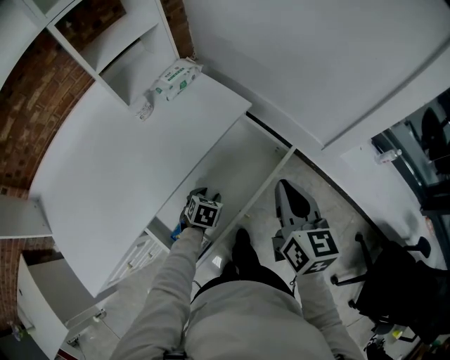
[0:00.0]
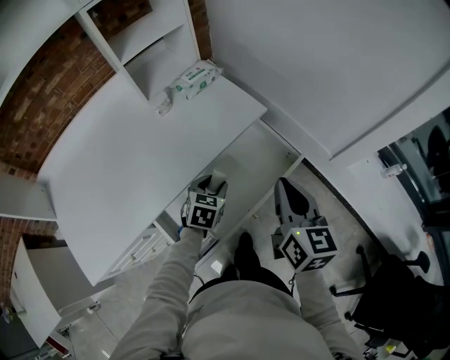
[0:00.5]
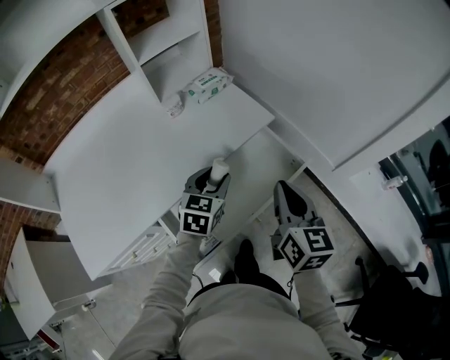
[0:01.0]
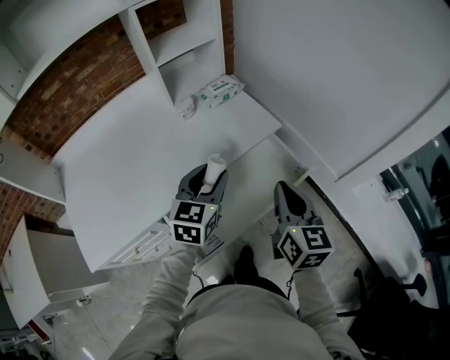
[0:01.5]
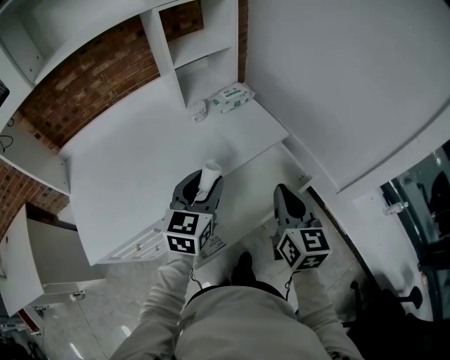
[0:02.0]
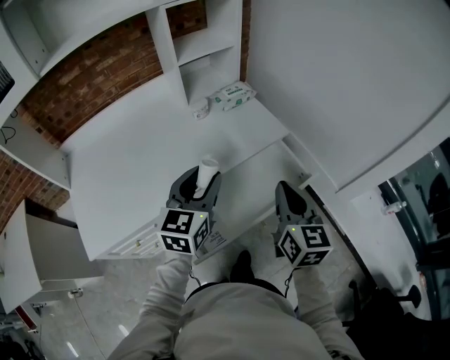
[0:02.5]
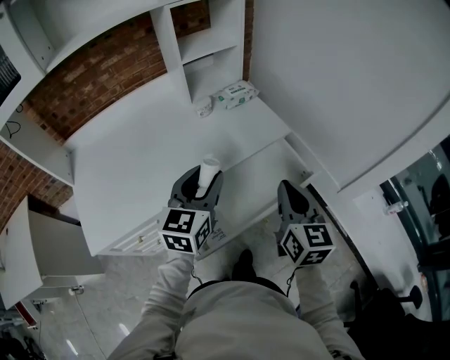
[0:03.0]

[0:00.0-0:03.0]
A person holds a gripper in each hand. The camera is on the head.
0:00.0 to 0:01.5: The left gripper travels upward by roughly 30 cm, and tilts its fingers some 40 degrees upward. Meanwhile the right gripper moves to the left, approximately 5 cm.
0:01.5 to 0:03.0: The left gripper shifts approximately 10 cm backward, upward and to the left.

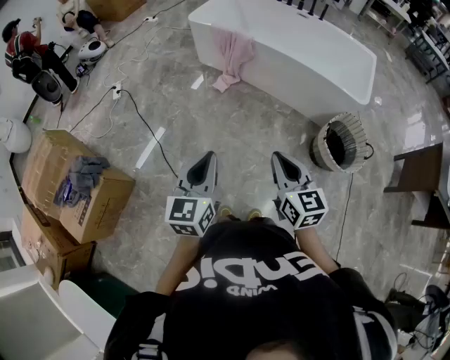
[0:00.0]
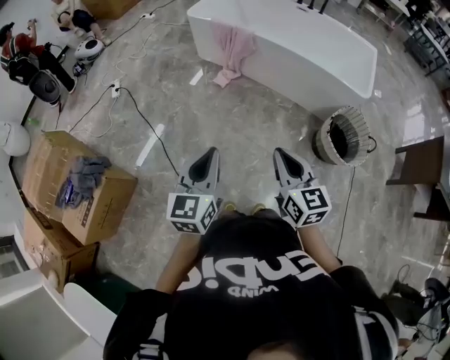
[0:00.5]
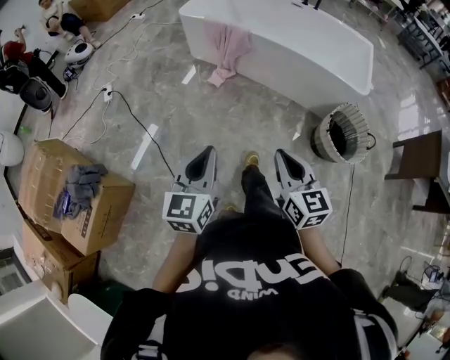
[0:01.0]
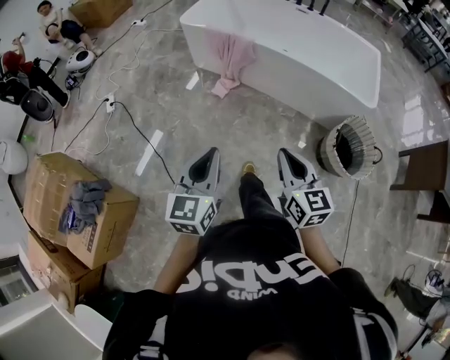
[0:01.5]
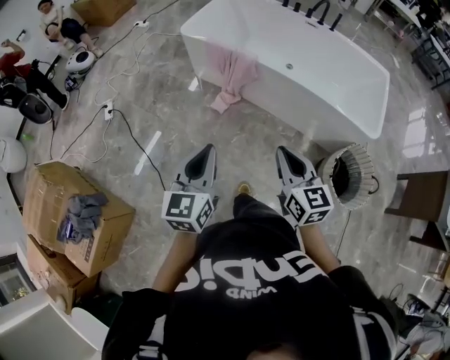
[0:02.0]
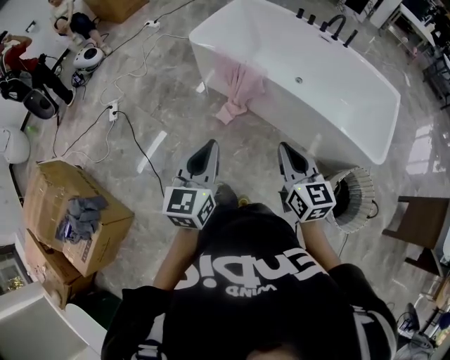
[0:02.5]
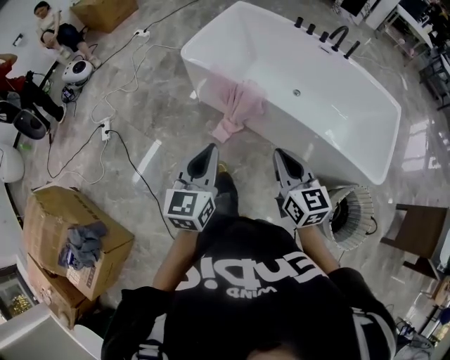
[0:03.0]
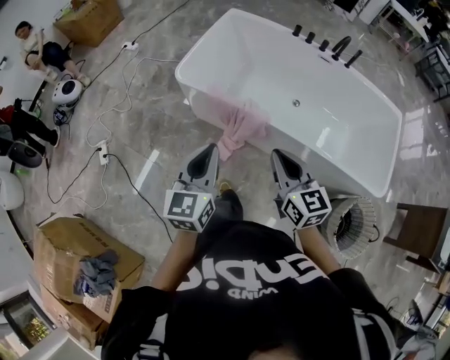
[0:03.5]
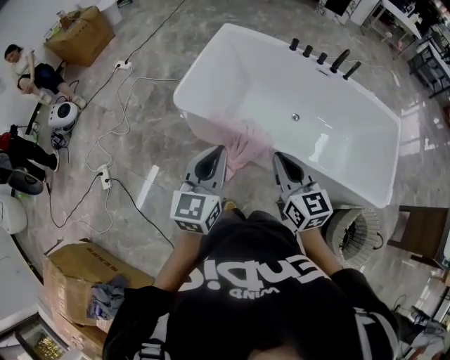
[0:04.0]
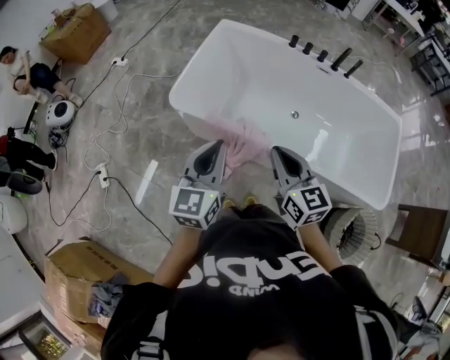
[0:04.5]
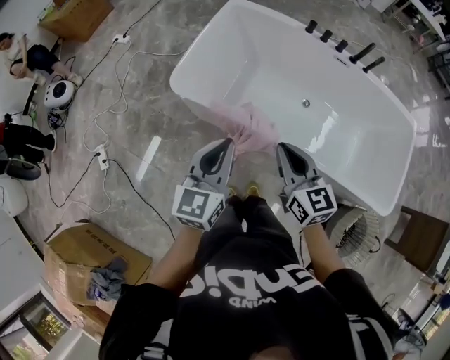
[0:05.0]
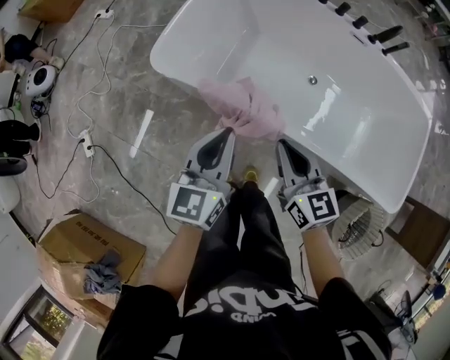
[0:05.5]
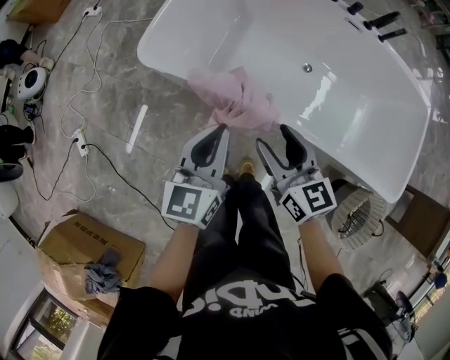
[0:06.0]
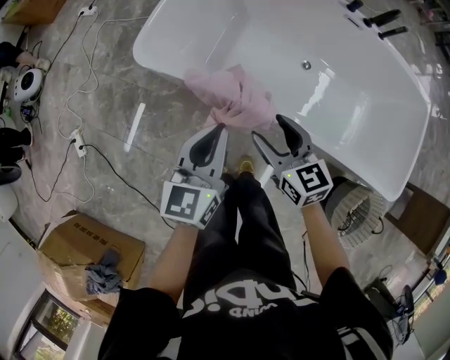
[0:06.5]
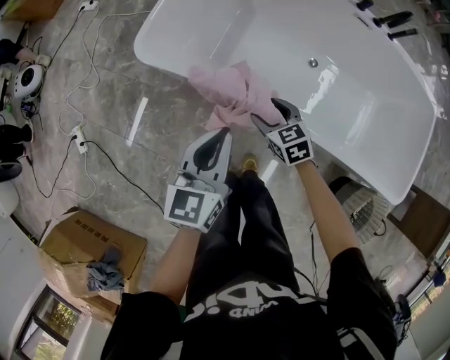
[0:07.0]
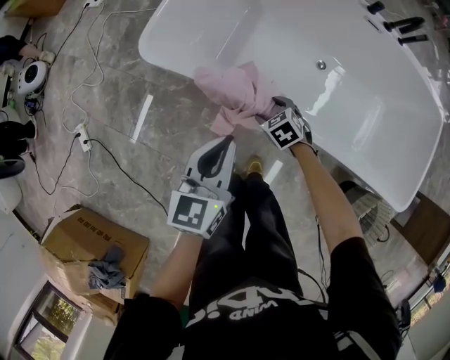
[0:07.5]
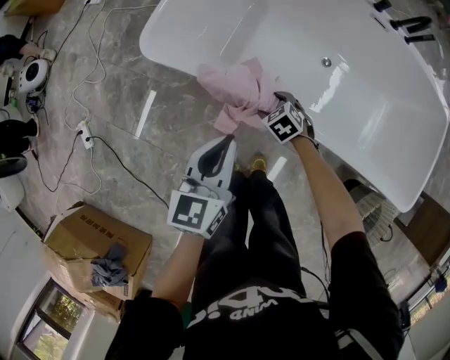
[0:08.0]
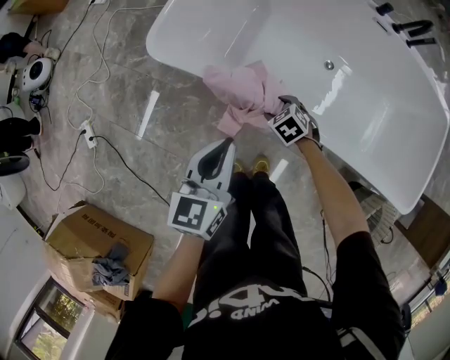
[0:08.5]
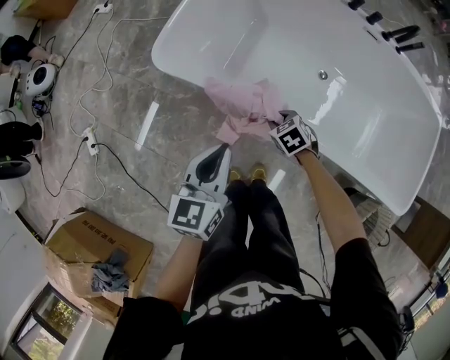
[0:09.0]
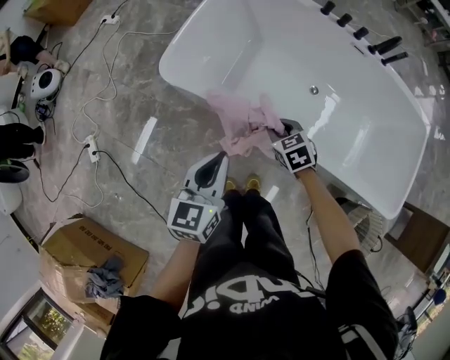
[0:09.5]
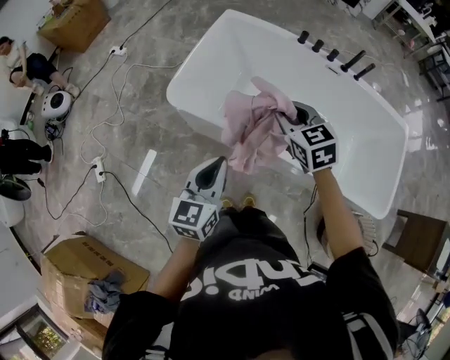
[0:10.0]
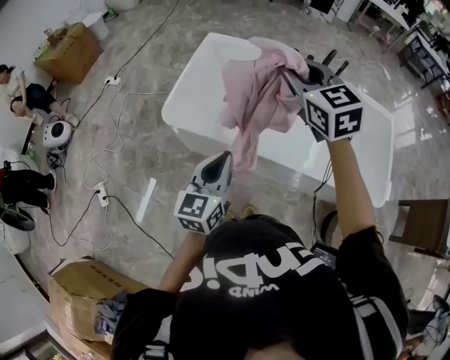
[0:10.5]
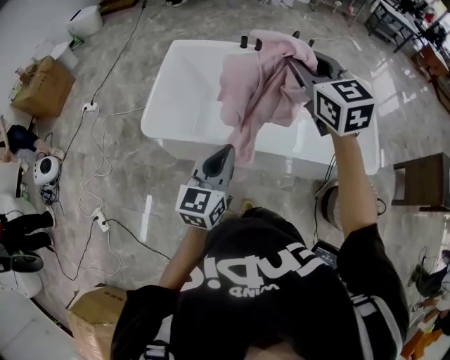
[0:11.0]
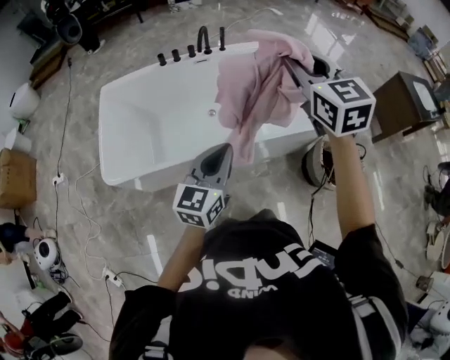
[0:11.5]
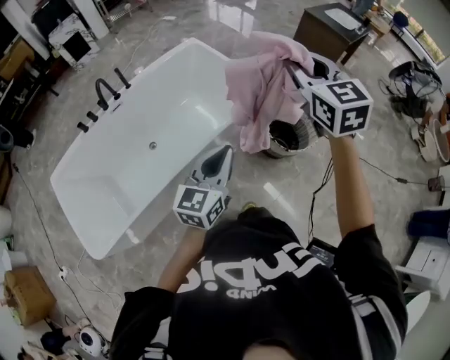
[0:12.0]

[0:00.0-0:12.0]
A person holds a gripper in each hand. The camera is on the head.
0:00.0 to 0:02.0: The grippers both shift forward by roughly 30 cm.
0:02.0 to 0:04.0: Both grippers are carried forward, some 50 cm.
0:04.0 to 0:06.0: The two grippers go about 20 cm downward and forward. The right gripper opens.
0:06.0 to 0:08.0: The left gripper goes some 5 cm downward; the right gripper travels downward by some 30 cm, and angles its fingers downward, by roughly 50 degrees.
0:08.0 to 0:10.0: The right gripper travels upward by roughly 40 cm, tilts its fingers approximately 30 degrees upward, and closes up; the left gripper moves upward, about 15 cm.
0:10.0 to 0:12.0: The two grippers travel together, some 60 cm. The left gripper swivels about 70 degrees; the right gripper turns by about 70 degrees.

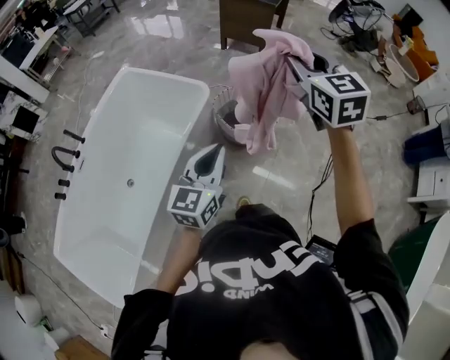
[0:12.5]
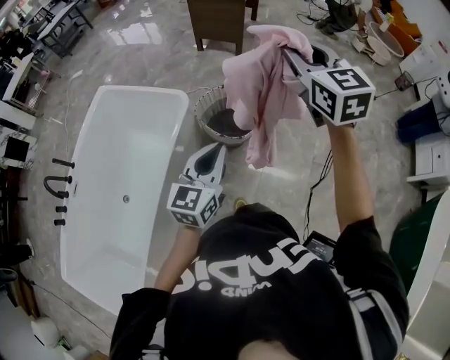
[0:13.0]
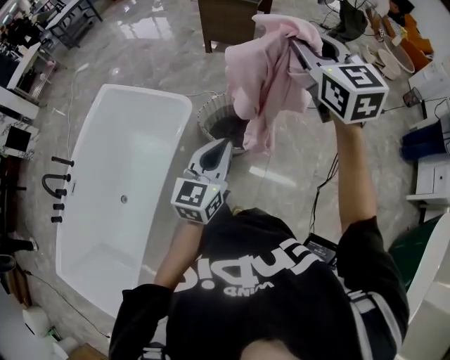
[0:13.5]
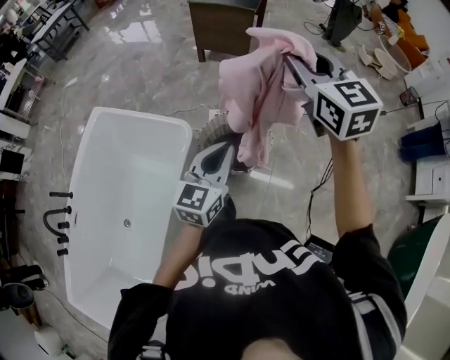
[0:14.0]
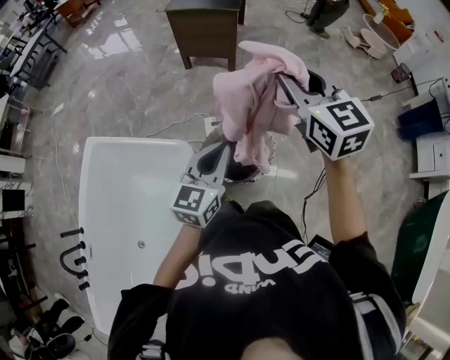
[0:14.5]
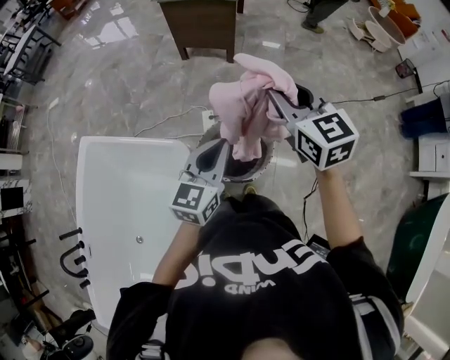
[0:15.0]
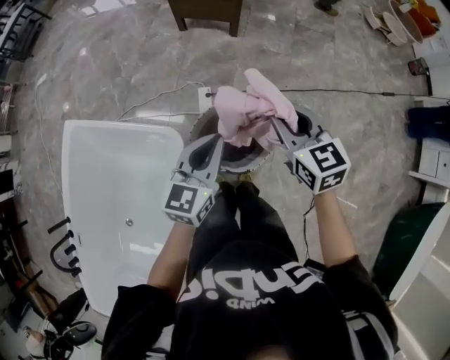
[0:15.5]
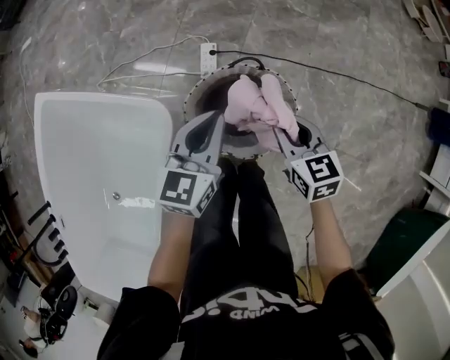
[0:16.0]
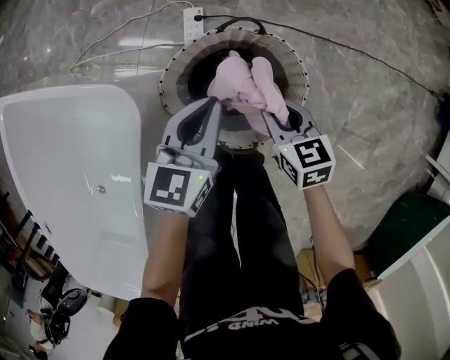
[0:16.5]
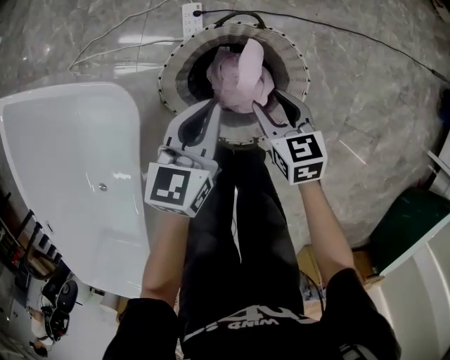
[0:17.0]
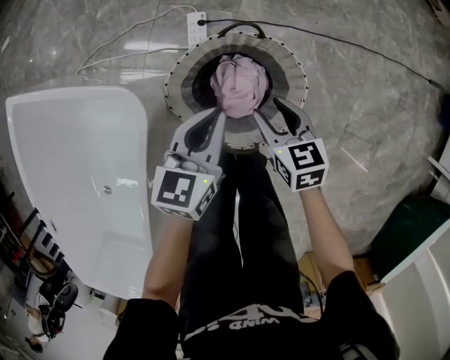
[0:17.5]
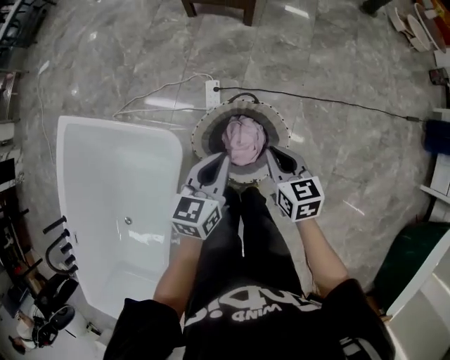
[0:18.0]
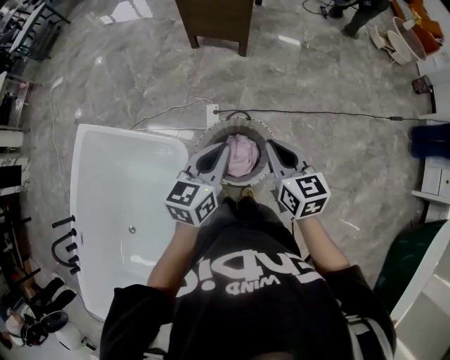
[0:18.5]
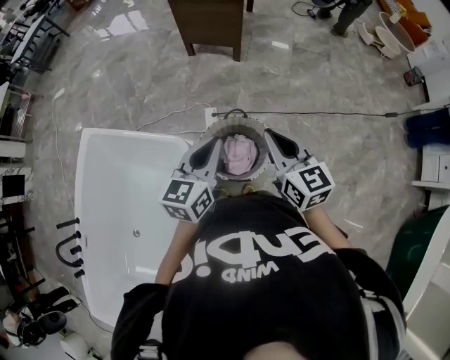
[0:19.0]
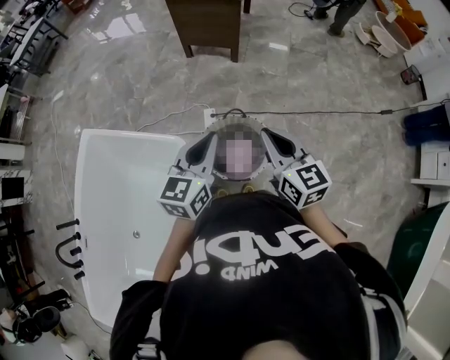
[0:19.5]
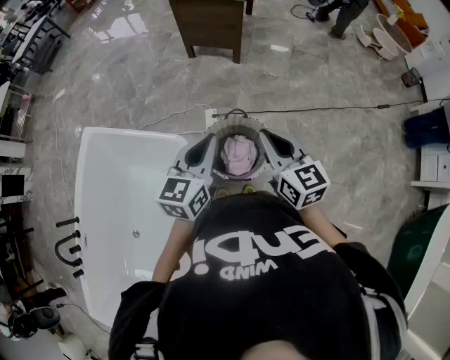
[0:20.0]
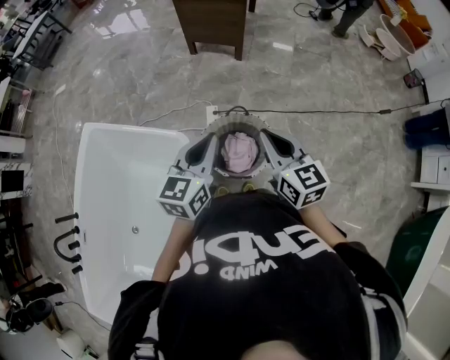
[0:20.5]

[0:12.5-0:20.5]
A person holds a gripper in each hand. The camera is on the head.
0:12.5 to 0:14.5: Both grippers travel together forward, roughly 35 cm.
0:14.5 to 0:16.5: The left gripper travels downward by roughly 40 cm, and changes its angle by roughly 20 degrees, while the right gripper travels downward by some 60 cm, and points its fingers about 30 degrees further downward.
0:16.5 to 0:18.5: Both grippers move upward, roughly 35 cm. The right gripper rotates about 20 degrees, and opens and closes again.
0:18.5 to 0:20.5: Both grippers travel together backward and upward, approximately 10 cm.

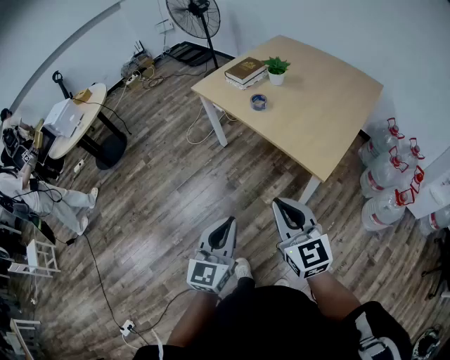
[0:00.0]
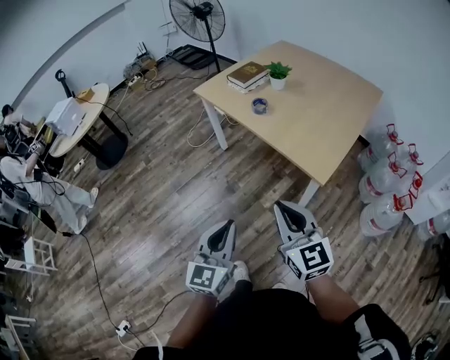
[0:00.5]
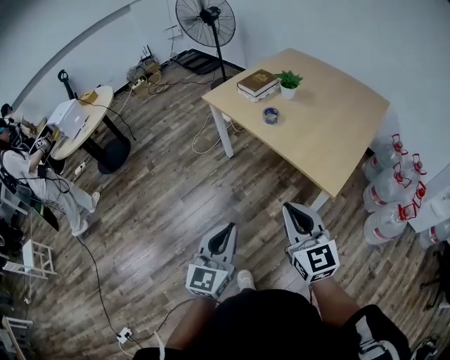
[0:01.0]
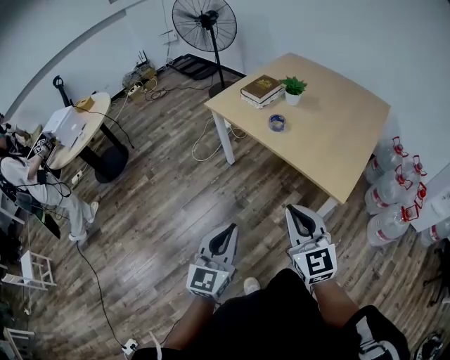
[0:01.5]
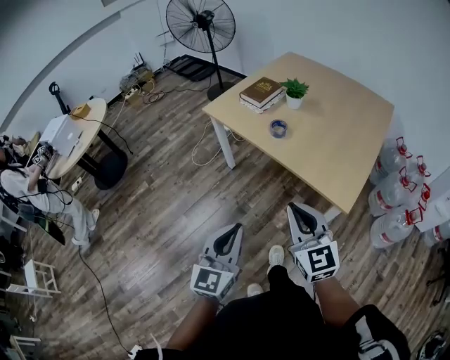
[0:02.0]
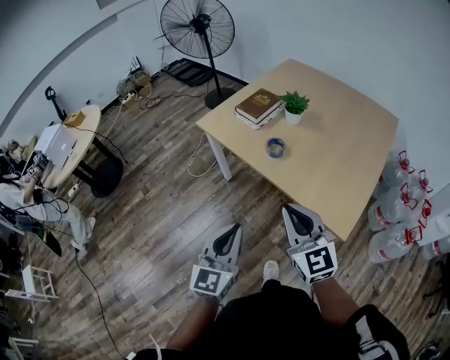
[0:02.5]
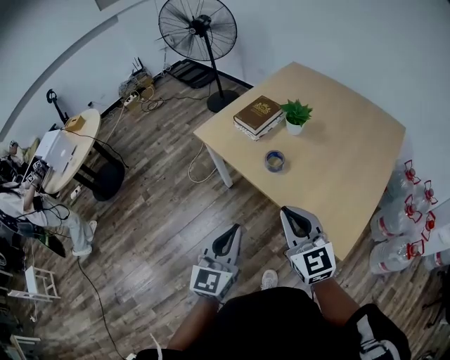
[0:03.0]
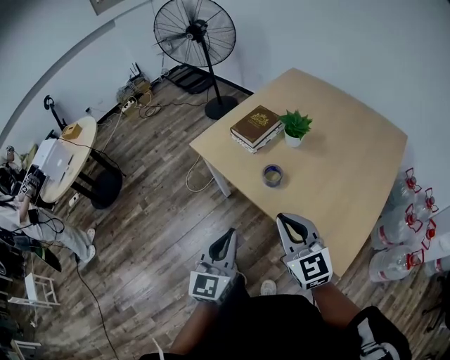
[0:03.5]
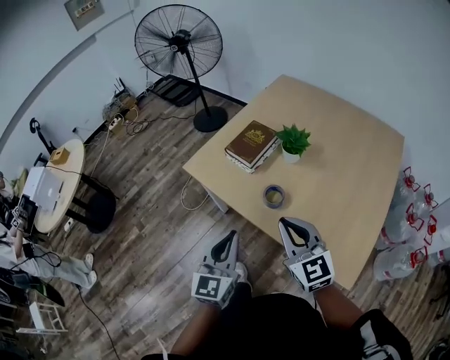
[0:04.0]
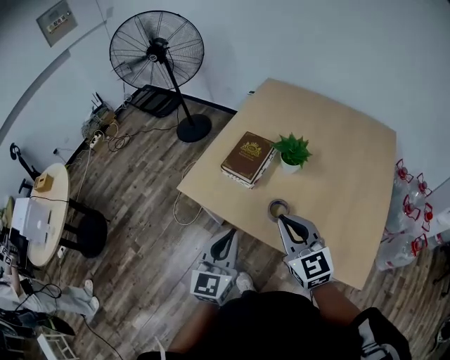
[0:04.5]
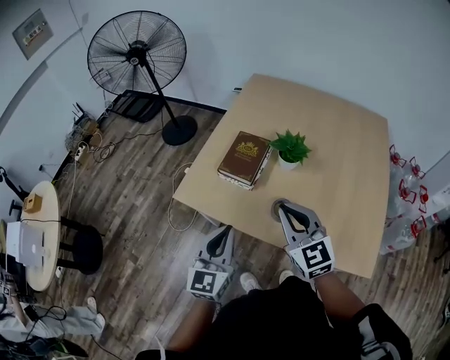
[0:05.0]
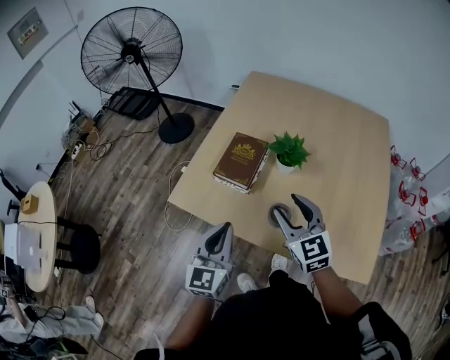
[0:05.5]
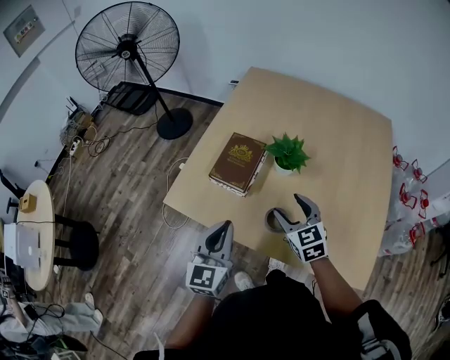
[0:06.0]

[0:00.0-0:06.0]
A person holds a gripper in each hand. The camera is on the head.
0:00.0 to 0:02.0: The two grippers go approximately 15 cm forward and to the left.
0:02.0 to 0:04.0: The two grippers go some 35 cm forward.
0:04.0 to 0:06.0: The left gripper travels forward by some 20 cm. The right gripper heads forward and downward, covering approximately 25 cm, changes its angle by roughly 30 degrees, and opens its fingers.
